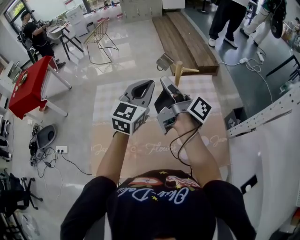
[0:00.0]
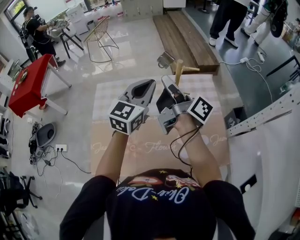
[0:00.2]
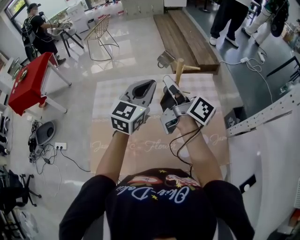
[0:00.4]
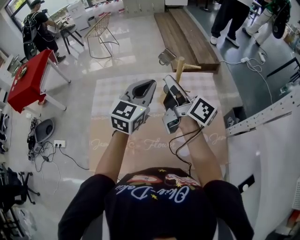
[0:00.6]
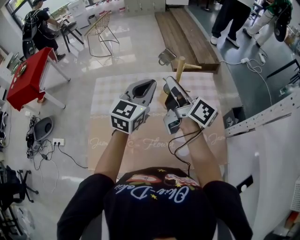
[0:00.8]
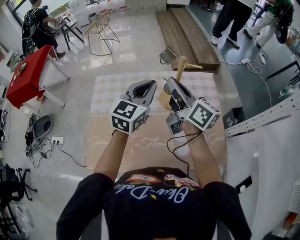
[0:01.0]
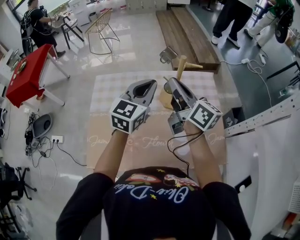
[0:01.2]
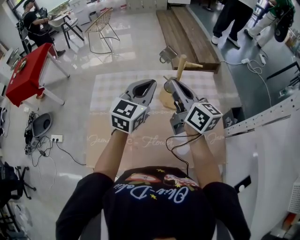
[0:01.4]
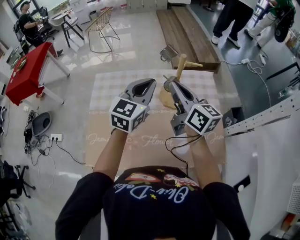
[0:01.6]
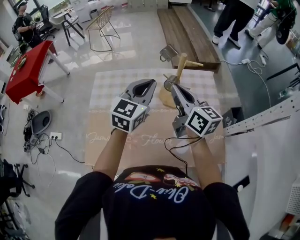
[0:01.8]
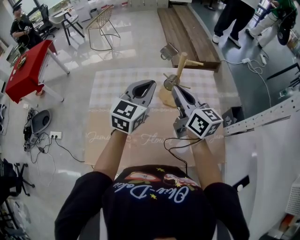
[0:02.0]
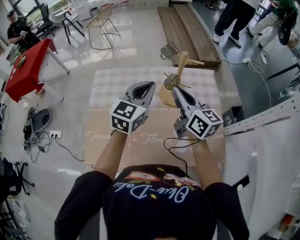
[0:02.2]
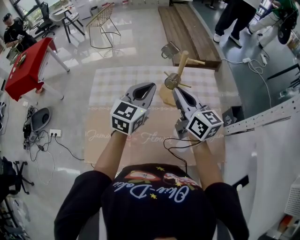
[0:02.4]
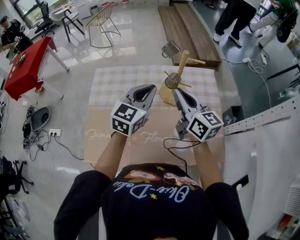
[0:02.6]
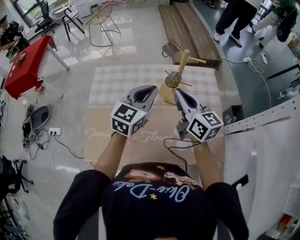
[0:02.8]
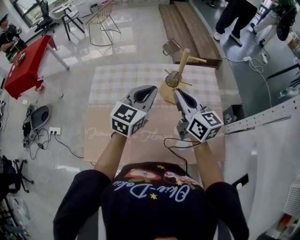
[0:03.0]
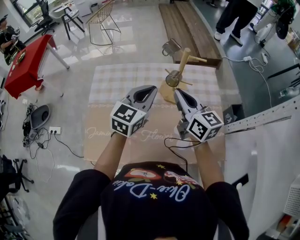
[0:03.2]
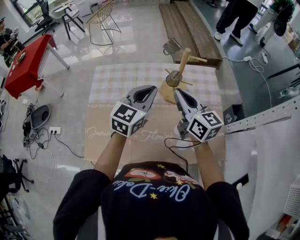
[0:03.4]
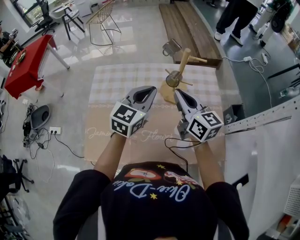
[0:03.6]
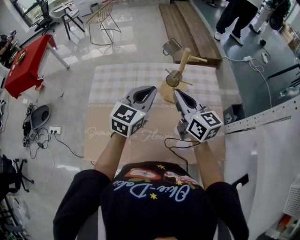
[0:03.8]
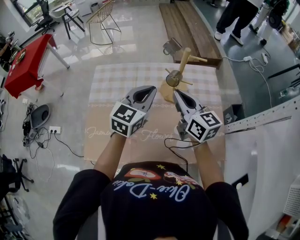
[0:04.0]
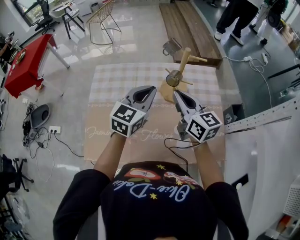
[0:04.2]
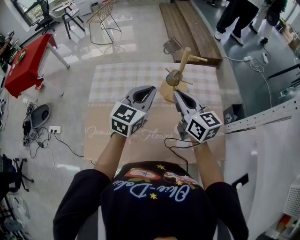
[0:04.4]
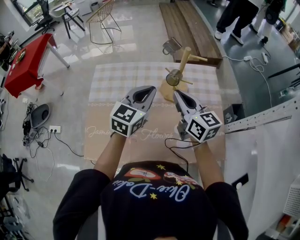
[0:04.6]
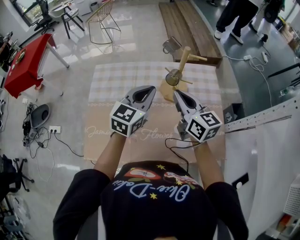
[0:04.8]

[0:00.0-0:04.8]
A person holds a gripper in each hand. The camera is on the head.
0:00.0 to 0:01.6: The right gripper twists about 50 degrees counterclockwise, seen from behind.
0:01.6 to 0:03.2: The left gripper changes place by about 5 cm. The right gripper changes place by some 5 cm.
0:03.2 to 0:04.8: Neither gripper changes place.

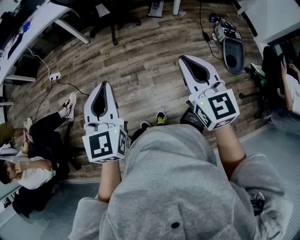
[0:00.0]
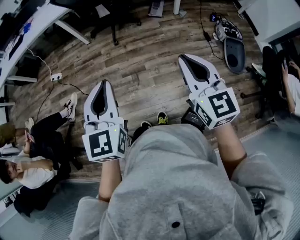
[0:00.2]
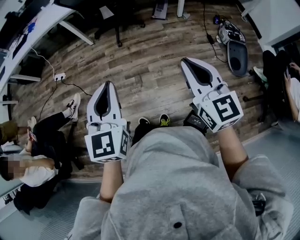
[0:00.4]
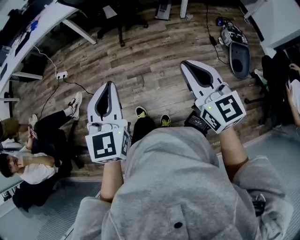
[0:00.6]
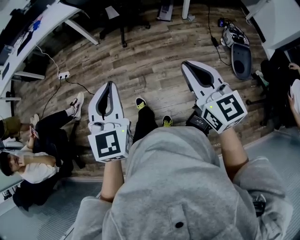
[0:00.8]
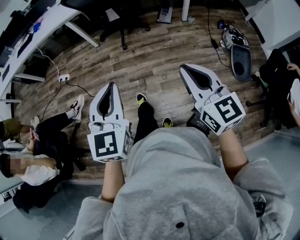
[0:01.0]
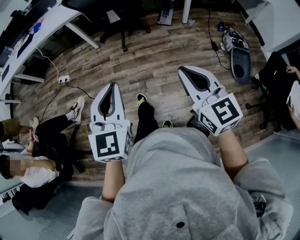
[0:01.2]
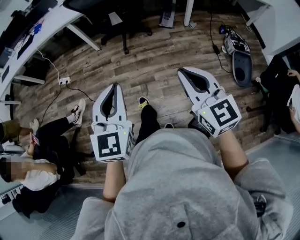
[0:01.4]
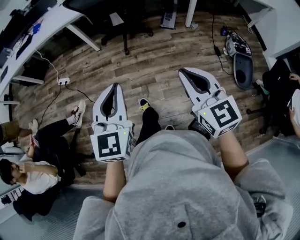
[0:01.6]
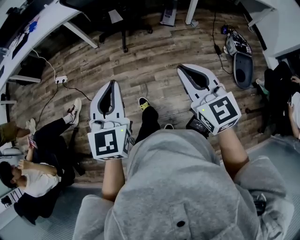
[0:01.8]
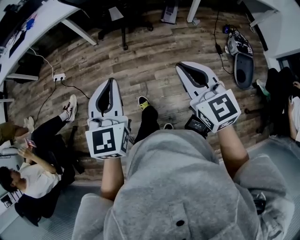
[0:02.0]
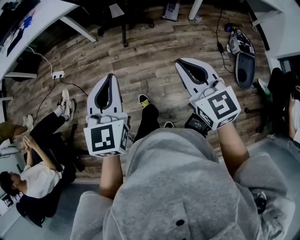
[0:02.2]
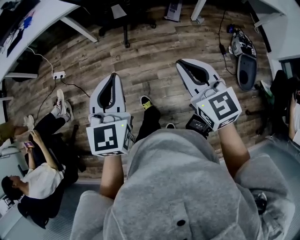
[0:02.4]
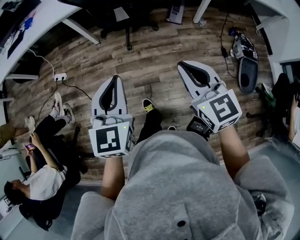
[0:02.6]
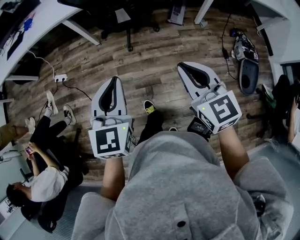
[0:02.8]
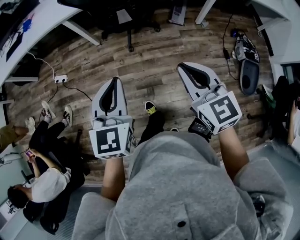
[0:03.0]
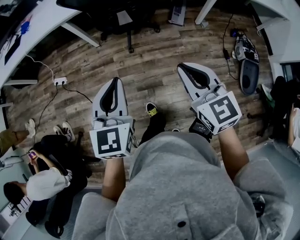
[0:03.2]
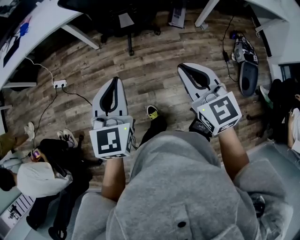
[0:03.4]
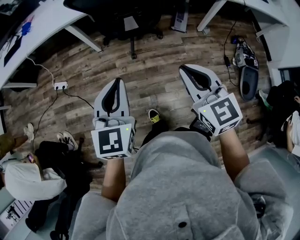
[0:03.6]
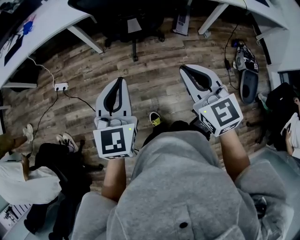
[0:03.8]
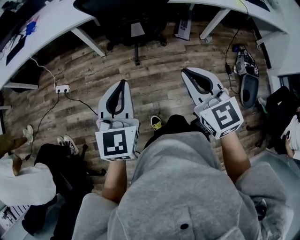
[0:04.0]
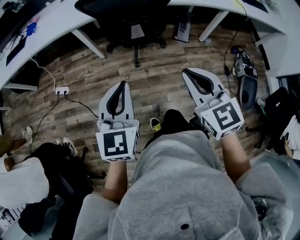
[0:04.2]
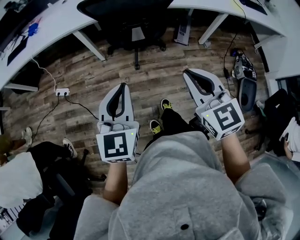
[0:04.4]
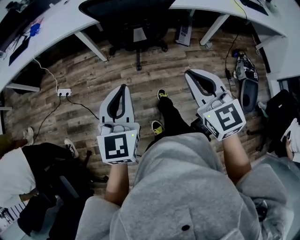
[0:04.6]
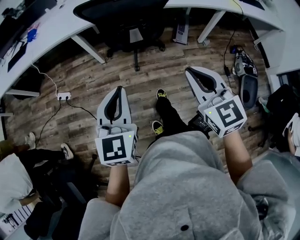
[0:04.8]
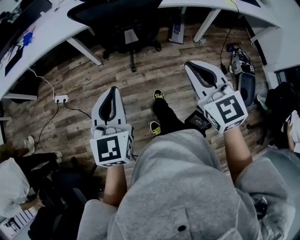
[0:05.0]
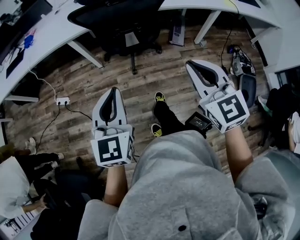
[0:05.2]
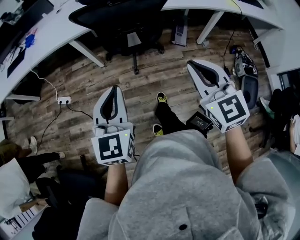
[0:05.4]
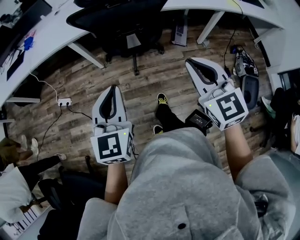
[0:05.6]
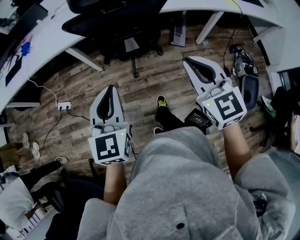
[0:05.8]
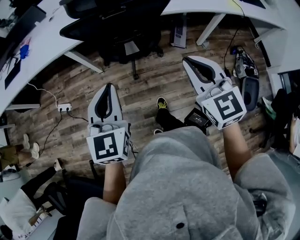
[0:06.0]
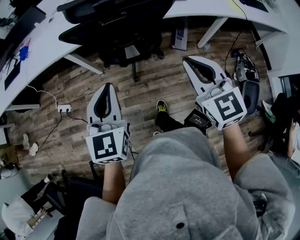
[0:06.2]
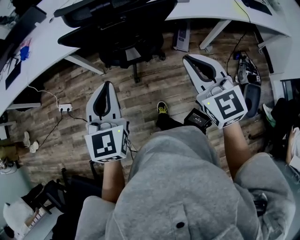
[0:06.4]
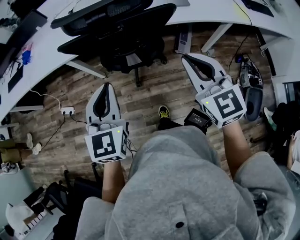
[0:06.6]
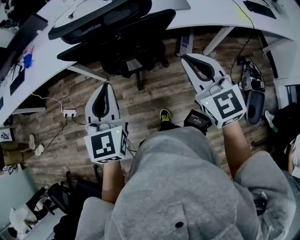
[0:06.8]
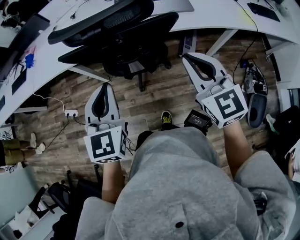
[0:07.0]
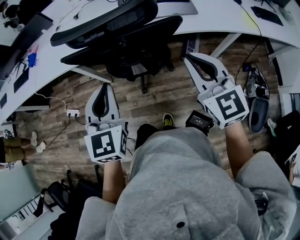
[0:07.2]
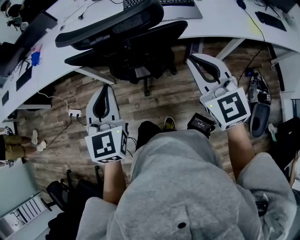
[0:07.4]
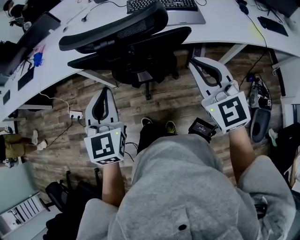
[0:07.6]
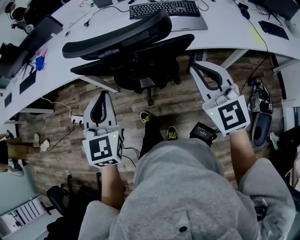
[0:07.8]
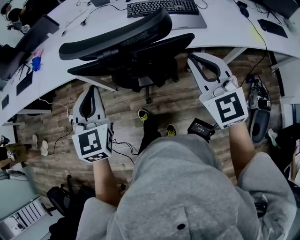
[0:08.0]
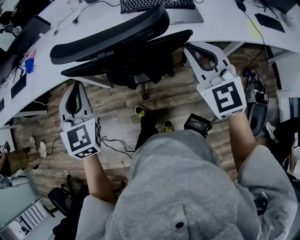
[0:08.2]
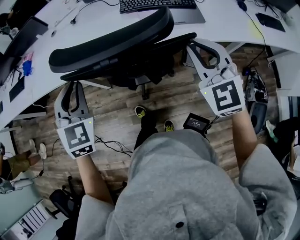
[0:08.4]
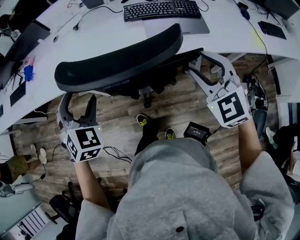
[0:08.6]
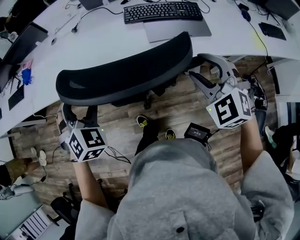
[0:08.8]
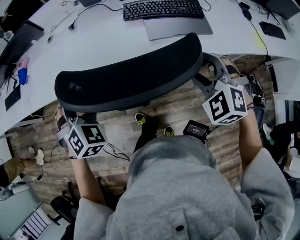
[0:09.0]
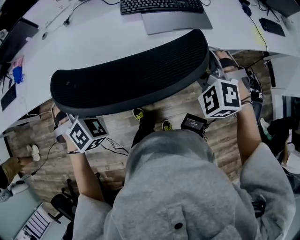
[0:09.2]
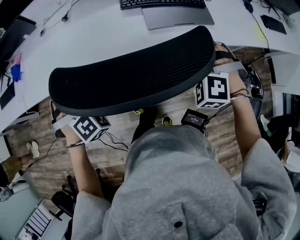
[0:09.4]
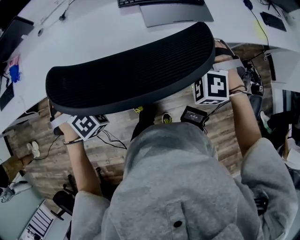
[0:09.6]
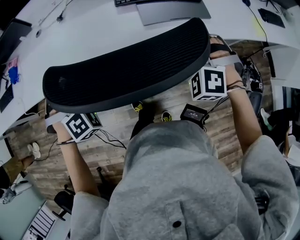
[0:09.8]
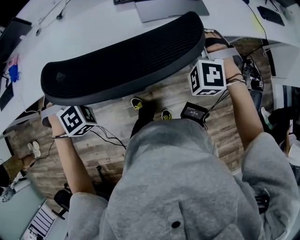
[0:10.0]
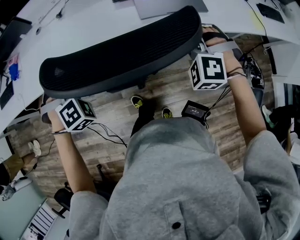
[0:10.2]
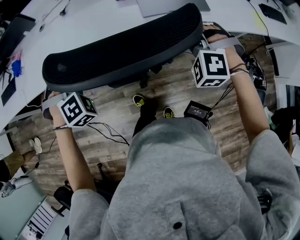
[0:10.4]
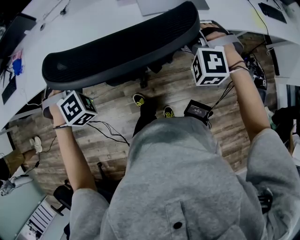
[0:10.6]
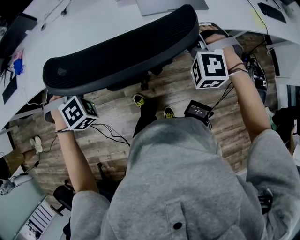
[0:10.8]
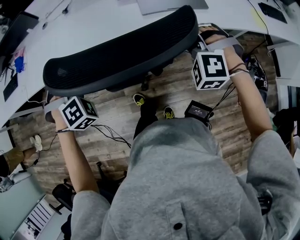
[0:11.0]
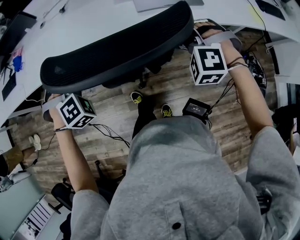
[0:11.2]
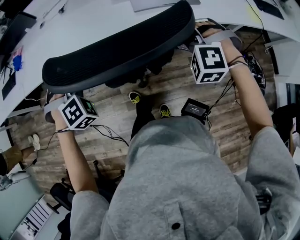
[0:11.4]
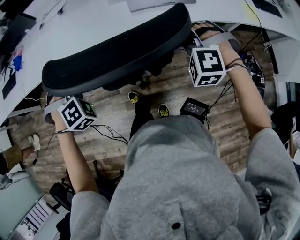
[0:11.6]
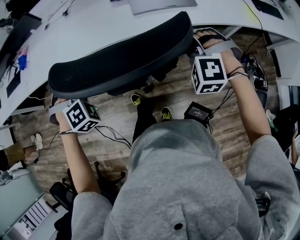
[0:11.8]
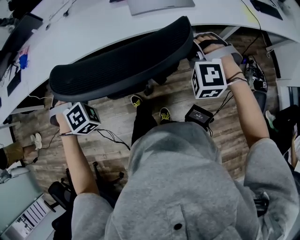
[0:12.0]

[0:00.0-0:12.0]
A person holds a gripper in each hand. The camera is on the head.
0:00.0 to 0:01.6: The grippers both shift forward by roughly 5 cm.
0:01.6 to 0:03.0: Both grippers move forward, roughly 20 cm.
0:03.0 to 0:04.4: Both grippers travel together forward and to the left, roughly 10 cm.
0:04.4 to 0:06.0: The left gripper is displaced forward by about 15 cm. Meanwhile the right gripper moves forward and to the right, roughly 15 cm.
0:06.0 to 0:07.6: The grippers both shift forward by some 15 cm.
0:07.6 to 0:09.0: The right gripper goes roughly 15 cm forward and downward, tilts its fingers roughly 30 degrees downward, and opens. The left gripper is displaced forward and to the left by roughly 20 cm, rolls clockwise, seen from behind, by about 40 degrees, and opens its fingers.
0:09.0 to 0:10.4: The left gripper rotates about 30 degrees, and closes its fingers, while the right gripper travels downward by some 5 cm, swivels approximately 20 degrees, and closes up.
0:10.4 to 0:12.0: Both grippers travel together backward, some 15 cm.

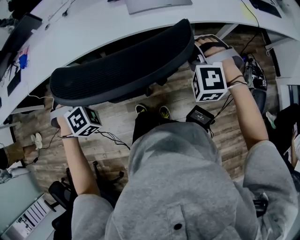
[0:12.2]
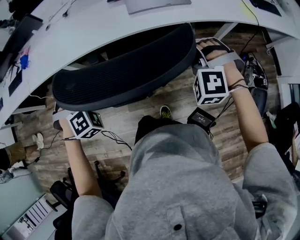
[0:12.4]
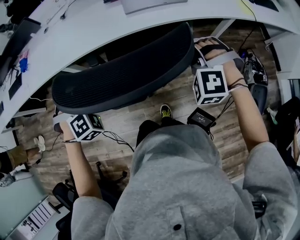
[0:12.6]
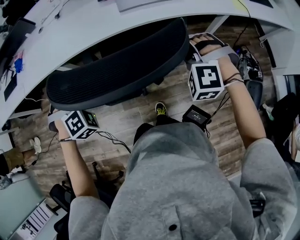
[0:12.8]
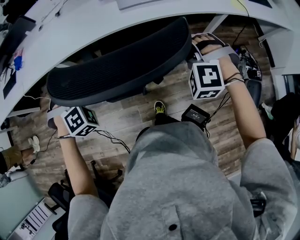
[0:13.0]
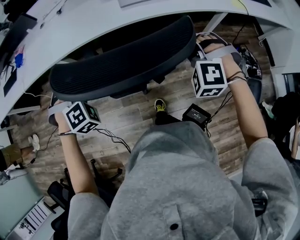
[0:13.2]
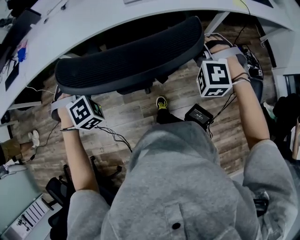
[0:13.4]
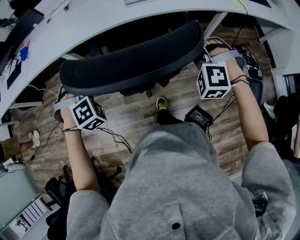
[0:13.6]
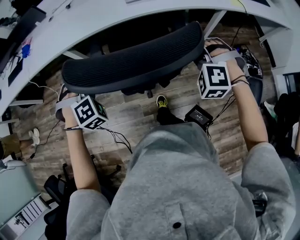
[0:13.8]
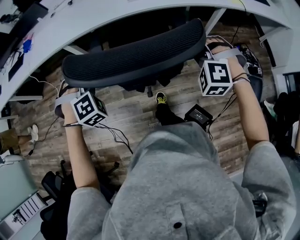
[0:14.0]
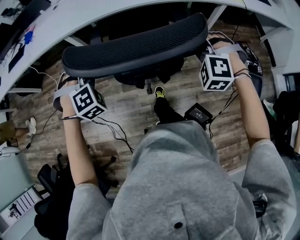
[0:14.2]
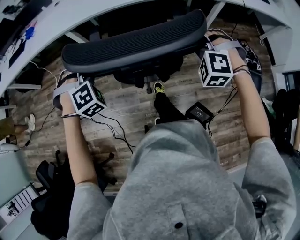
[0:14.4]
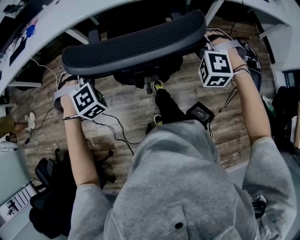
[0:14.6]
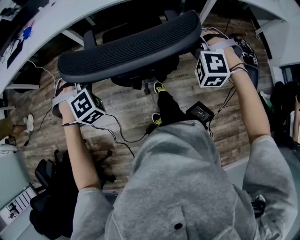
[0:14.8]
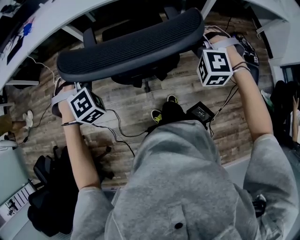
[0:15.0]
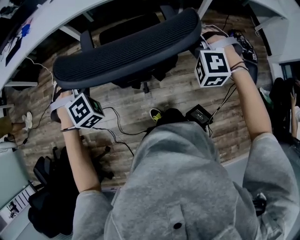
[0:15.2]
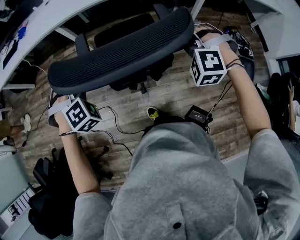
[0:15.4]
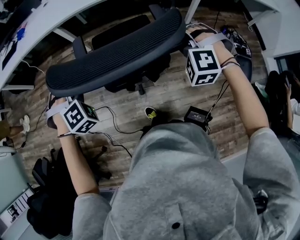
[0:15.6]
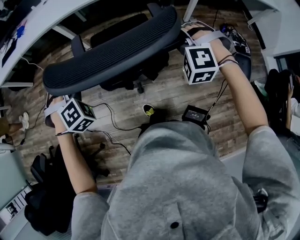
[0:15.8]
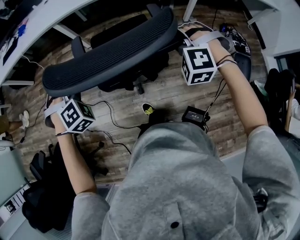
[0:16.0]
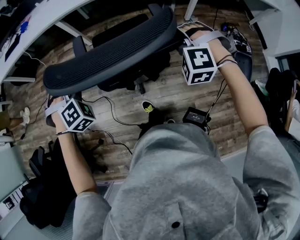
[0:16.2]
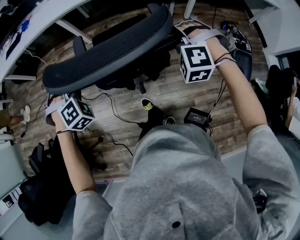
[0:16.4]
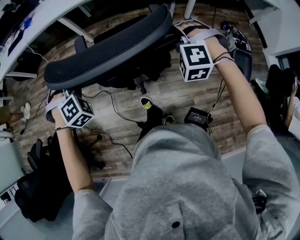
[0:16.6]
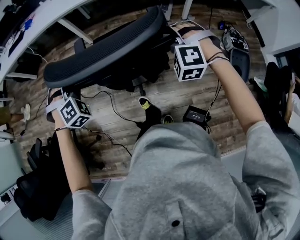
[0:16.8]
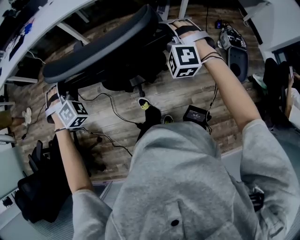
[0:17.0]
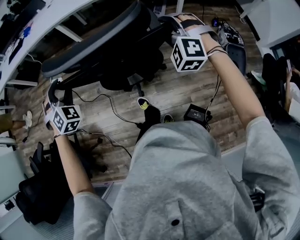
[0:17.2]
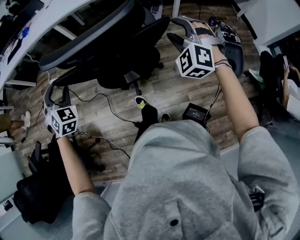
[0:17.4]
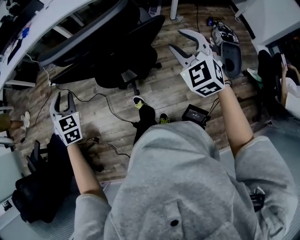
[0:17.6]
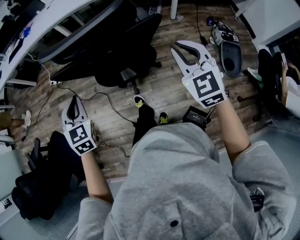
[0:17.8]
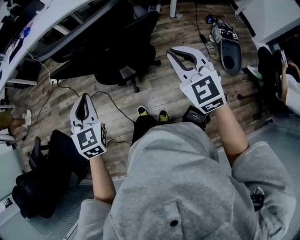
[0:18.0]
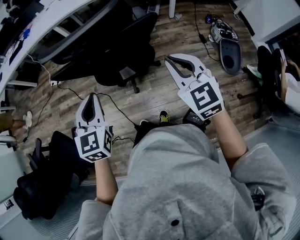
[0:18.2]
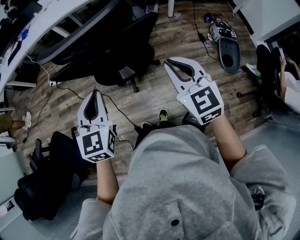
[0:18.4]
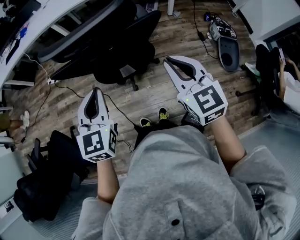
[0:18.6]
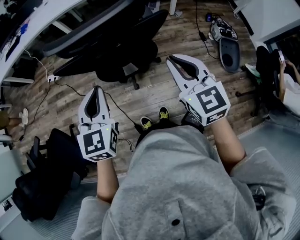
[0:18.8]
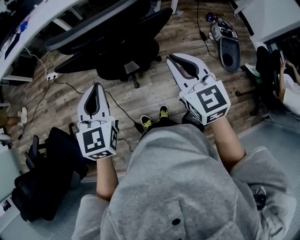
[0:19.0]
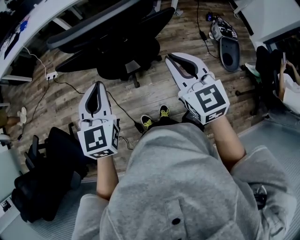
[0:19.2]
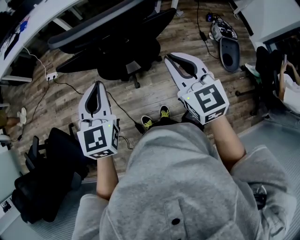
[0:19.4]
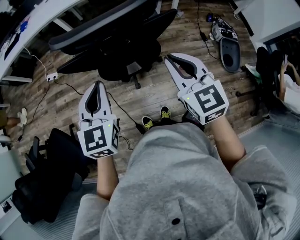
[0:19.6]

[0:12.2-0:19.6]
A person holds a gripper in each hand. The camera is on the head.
0:12.2 to 0:13.6: The two grippers go about 10 cm backward.
0:13.6 to 0:15.2: The grippers both shift backward by roughly 20 cm.
0:15.2 to 0:16.6: The two grippers go approximately 15 cm backward.
0:16.6 to 0:18.2: The right gripper moves backward, approximately 25 cm, rolls clockwise, seen from behind, by some 60 degrees, and opens, then closes again. Meanwhile the left gripper moves backward and to the right, approximately 25 cm, rotates around the line of its fingers by about 70 degrees, counterclockwise from behind, and opens, then closes again.
0:18.2 to 0:19.6: The right gripper travels to the left by roughly 5 cm.
